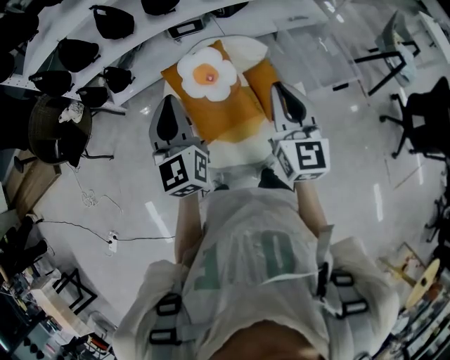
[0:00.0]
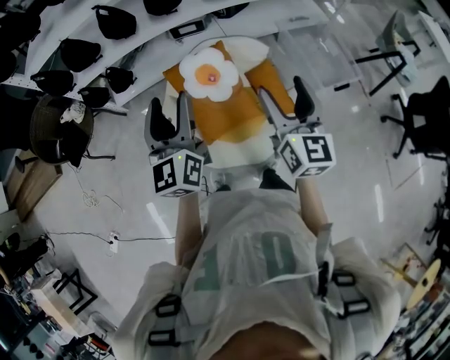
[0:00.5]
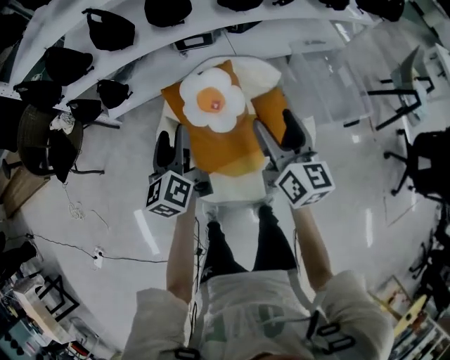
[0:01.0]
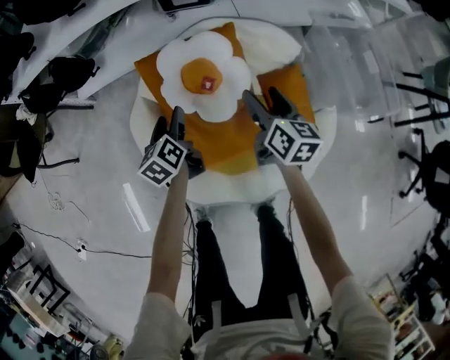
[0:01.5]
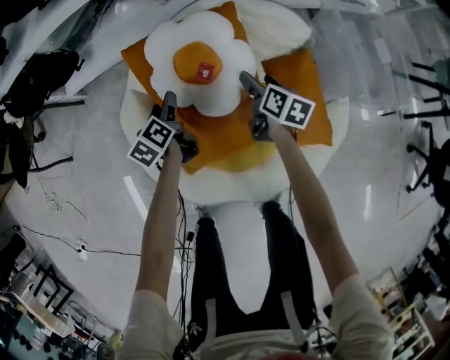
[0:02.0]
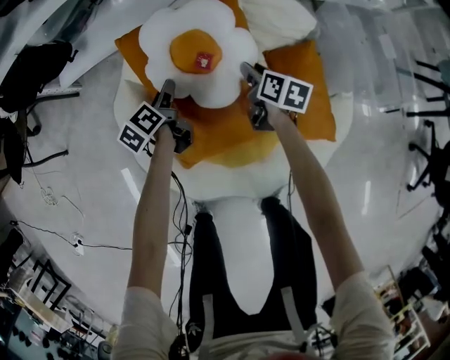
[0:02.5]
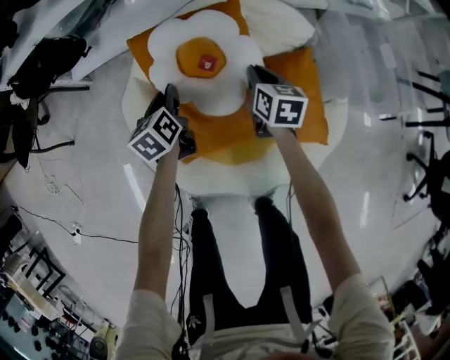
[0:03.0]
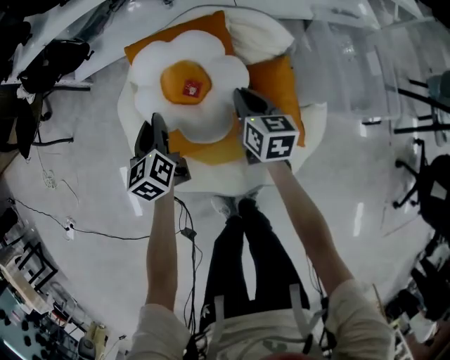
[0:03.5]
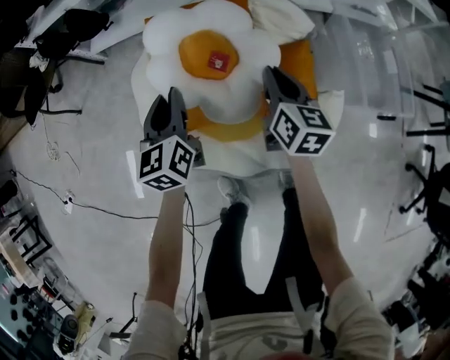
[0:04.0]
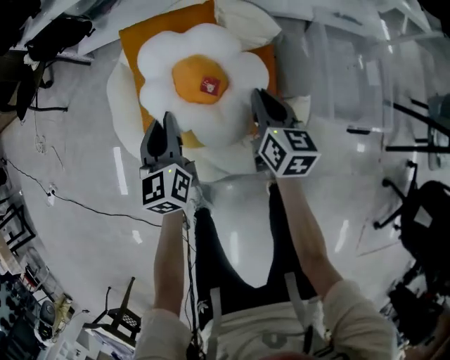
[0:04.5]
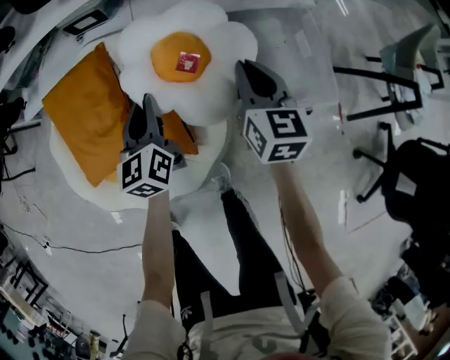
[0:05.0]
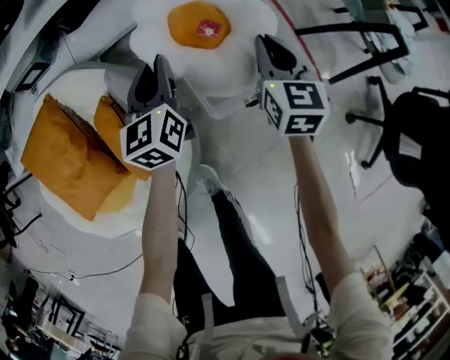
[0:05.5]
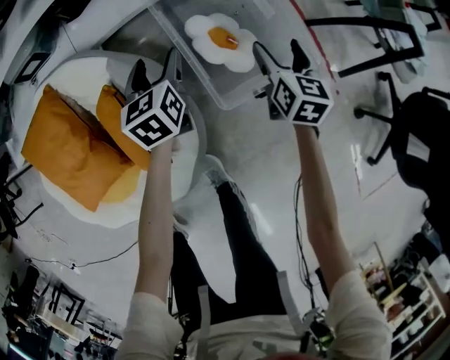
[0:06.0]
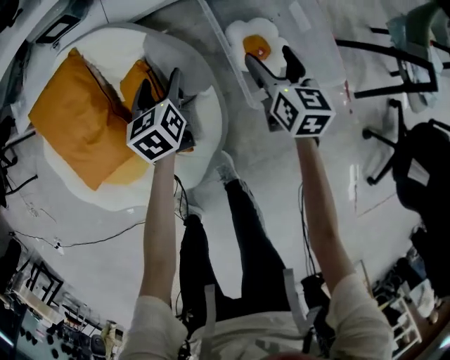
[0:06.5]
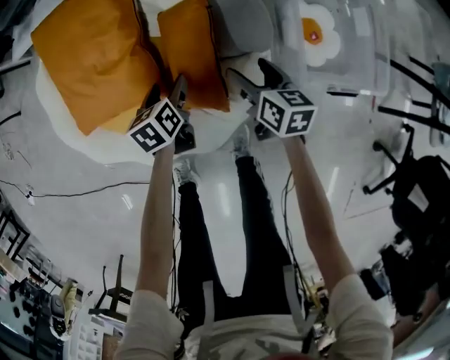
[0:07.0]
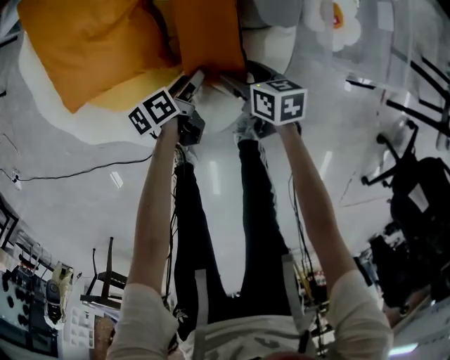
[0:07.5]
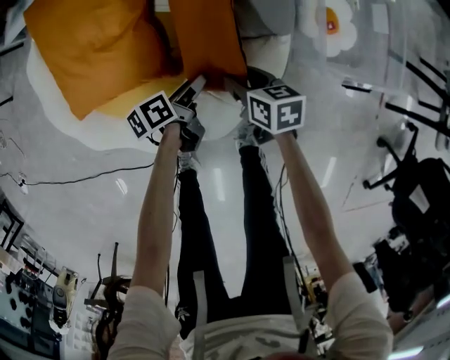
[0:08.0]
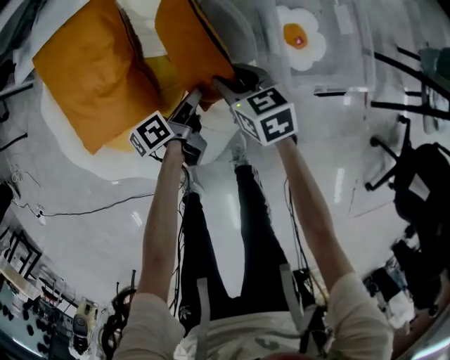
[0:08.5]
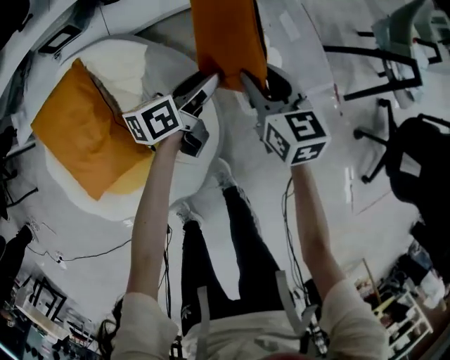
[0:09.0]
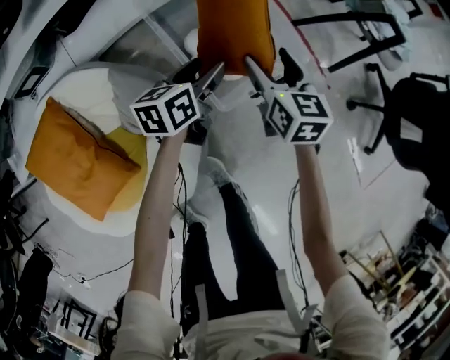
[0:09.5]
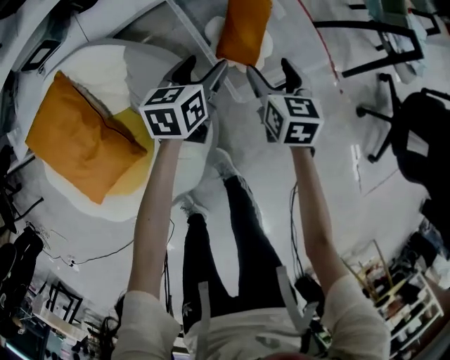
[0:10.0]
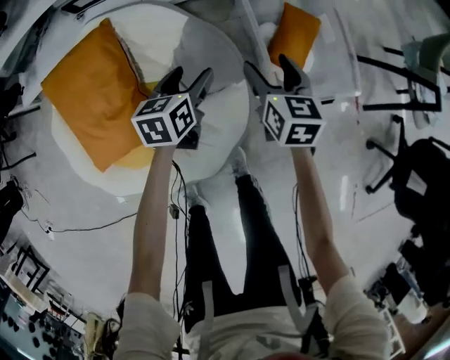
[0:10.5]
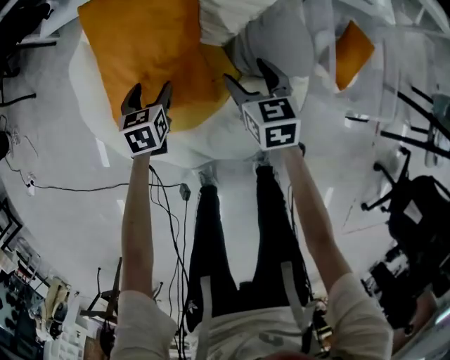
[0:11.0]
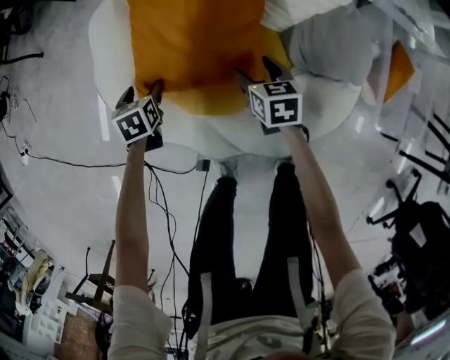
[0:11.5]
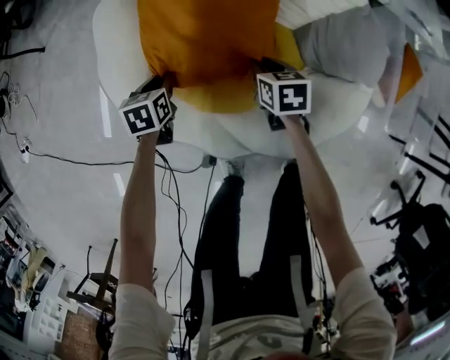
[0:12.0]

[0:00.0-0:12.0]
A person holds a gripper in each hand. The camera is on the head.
0:00.0 to 0:02.0: The left gripper shifts about 60 cm downward, points its fingers roughly 30 degrees further downward, and opens its fingers, while the right gripper moves downward and forward, roughly 70 cm, points its fingers approximately 30 degrees further downward, and opens its fingers.
0:02.0 to 0:04.0: The grippers both shift upward and backward by some 25 cm. The right gripper rotates roughly 30 degrees, and closes its fingers; the left gripper changes its angle by approximately 30 degrees, and closes its fingers.
0:04.0 to 0:06.0: The pair of grippers is taken approximately 70 cm. The right gripper swivels about 30 degrees, and opens up. Meanwhile the left gripper rotates roughly 20 degrees, and opens up.
0:06.0 to 0:08.0: The left gripper ends up roughly 40 cm from where it was, and twists roughly 60 degrees counterclockwise, seen from behind. Meanwhile the right gripper changes place by some 50 cm, swivels about 50 degrees, and closes up.
0:08.0 to 0:10.0: The right gripper ends up some 40 cm from where it was, and rotates roughly 50 degrees, while the left gripper moves approximately 40 cm, and rotates around the line of its fingers by approximately 60 degrees, clockwise from behind.
0:10.0 to 0:12.0: Both grippers are carried some 60 cm. The right gripper swivels approximately 50 degrees, and closes up. Meanwhile the left gripper turns by approximately 50 degrees, and closes its fingers.

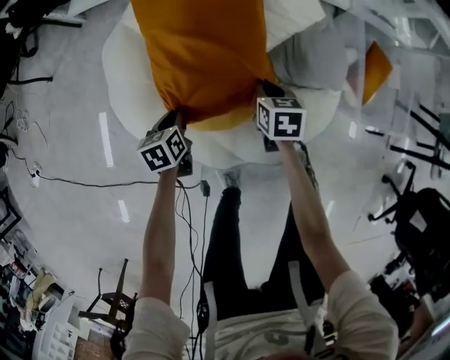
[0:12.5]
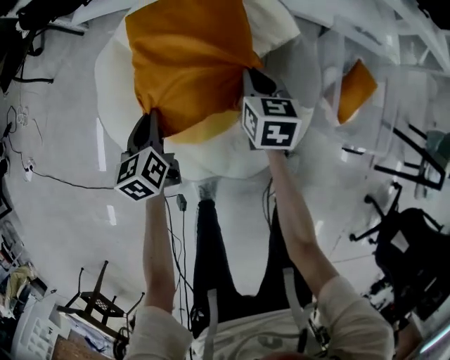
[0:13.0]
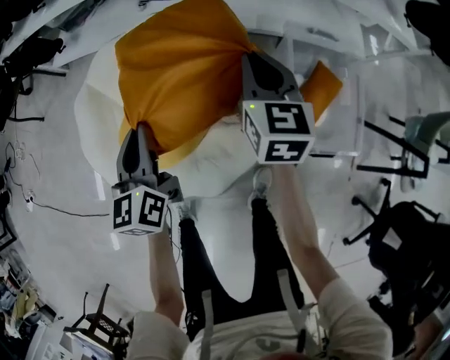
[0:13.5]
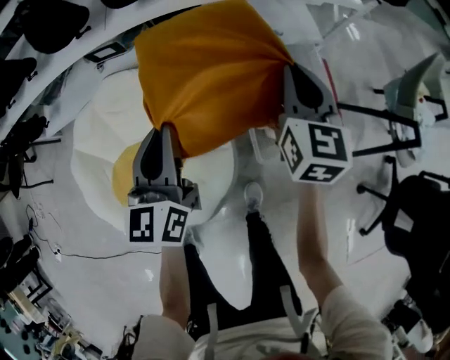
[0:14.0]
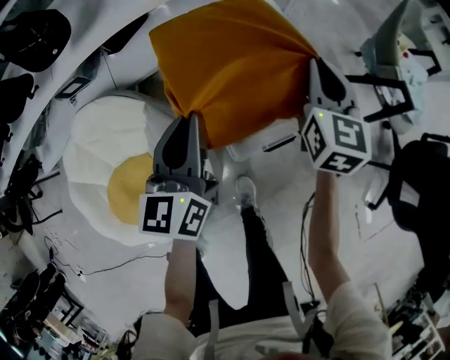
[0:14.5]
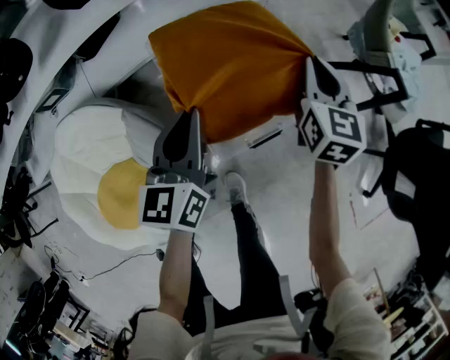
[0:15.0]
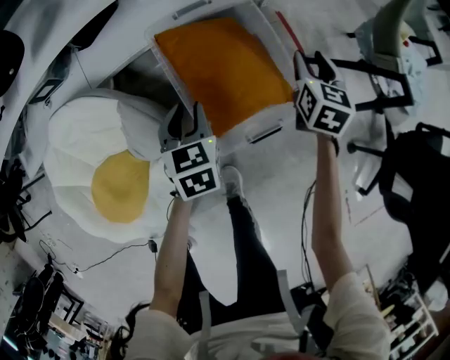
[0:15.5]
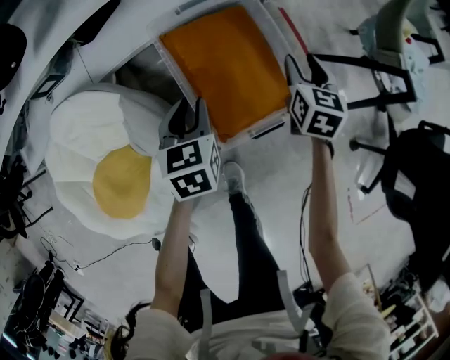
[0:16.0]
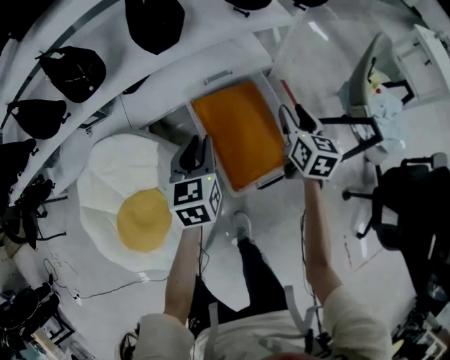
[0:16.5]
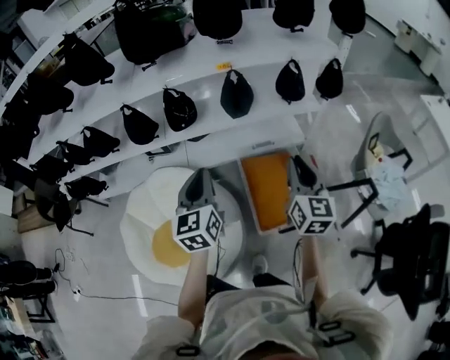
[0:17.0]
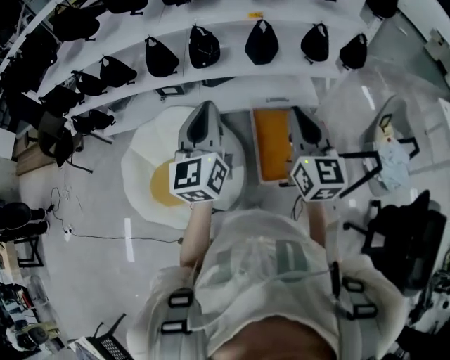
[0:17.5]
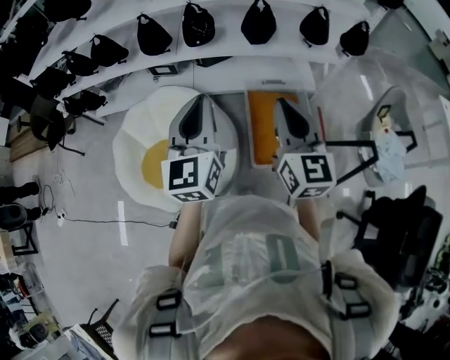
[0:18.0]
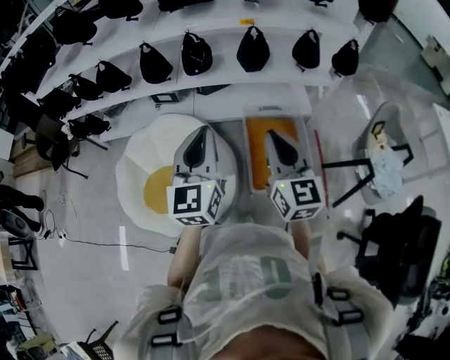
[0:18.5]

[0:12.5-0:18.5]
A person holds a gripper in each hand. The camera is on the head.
0:12.5 to 0:14.5: The pair of grippers is taken approximately 70 cm. The left gripper tips its fingers upward by roughly 40 degrees, while the right gripper tilts its fingers approximately 40 degrees upward.
0:14.5 to 0:16.5: The left gripper reaches some 20 cm downward, then returns, and swivels roughly 20 degrees, while the right gripper reaches approximately 15 cm downward, then returns, and opens up.
0:16.5 to 0:18.5: The left gripper heads upward, backward and to the left, covering approximately 40 cm, and points its fingers some 30 degrees further upward; the right gripper heads upward, to the left and backward, covering approximately 40 cm, swivels some 40 degrees, and closes.

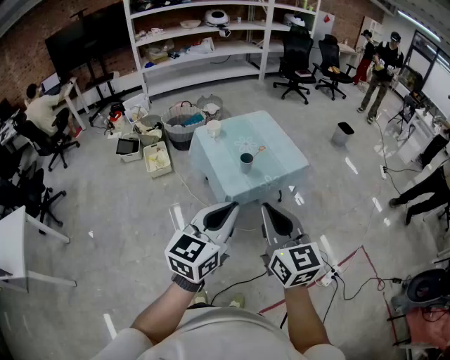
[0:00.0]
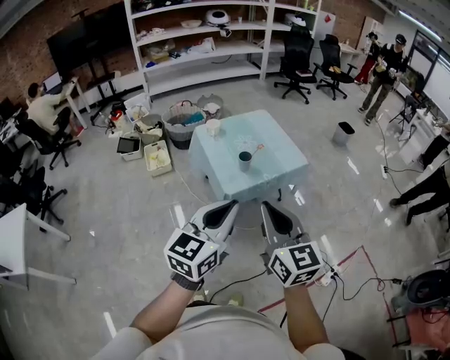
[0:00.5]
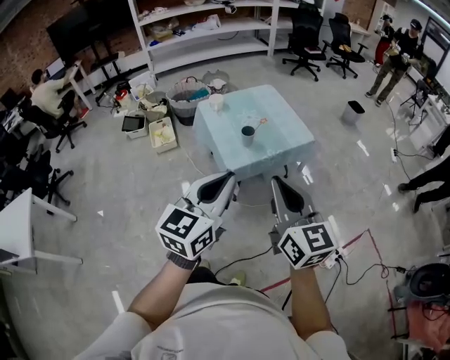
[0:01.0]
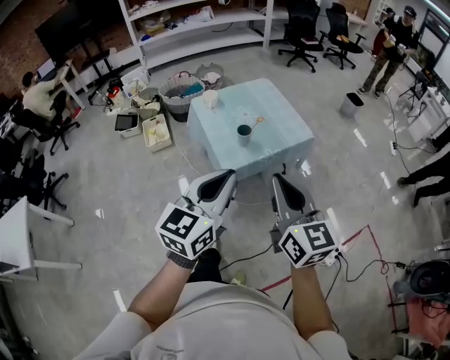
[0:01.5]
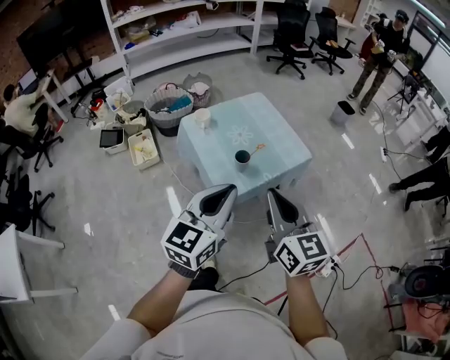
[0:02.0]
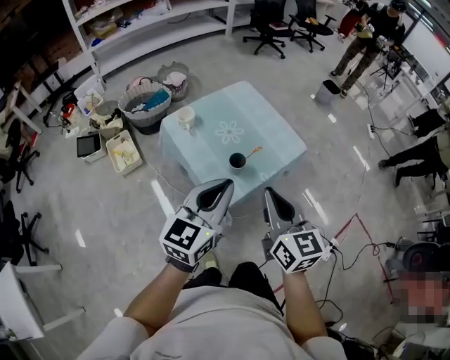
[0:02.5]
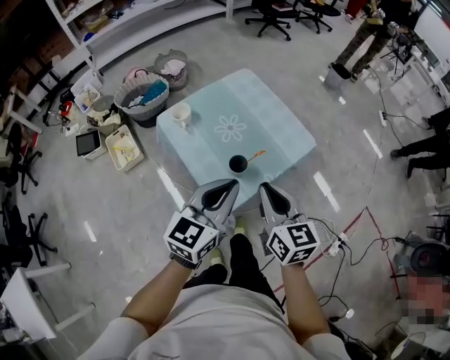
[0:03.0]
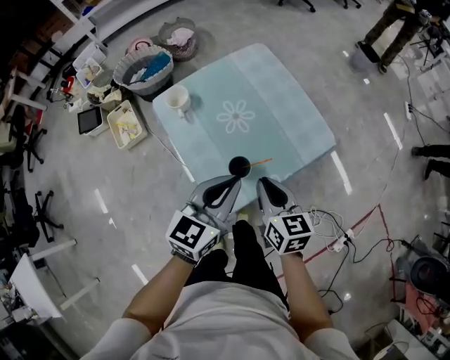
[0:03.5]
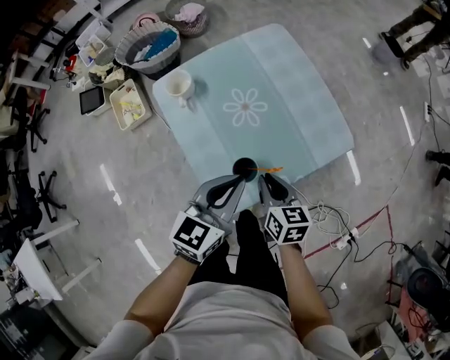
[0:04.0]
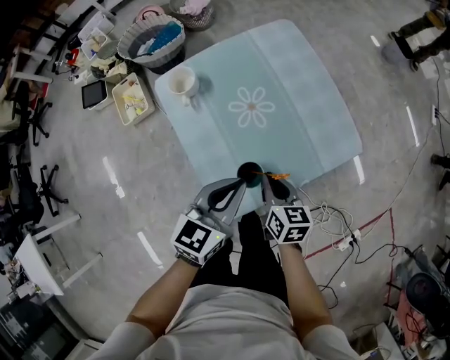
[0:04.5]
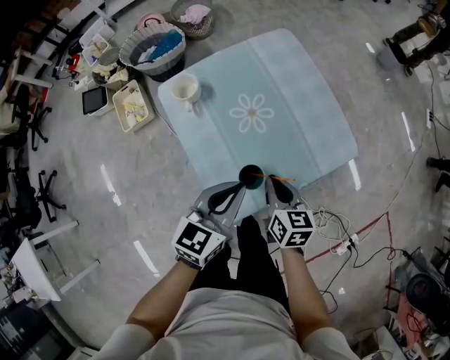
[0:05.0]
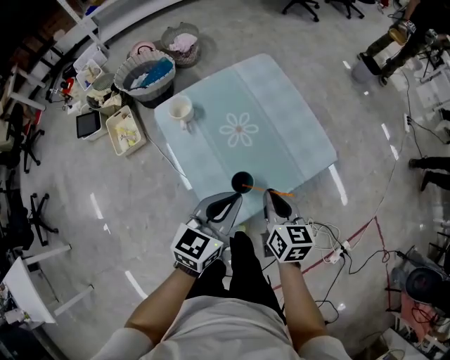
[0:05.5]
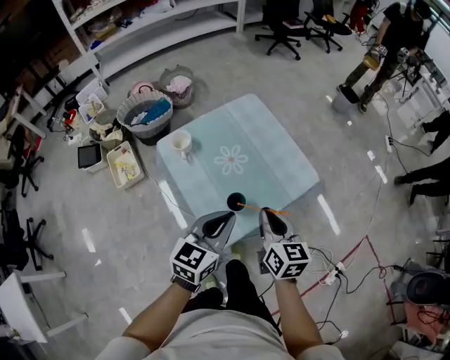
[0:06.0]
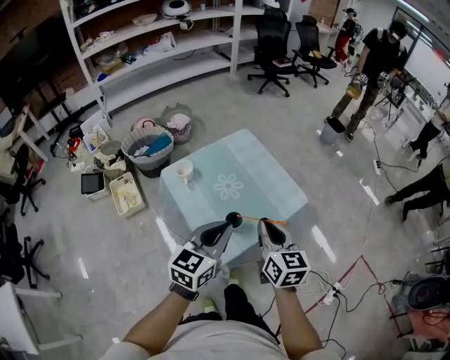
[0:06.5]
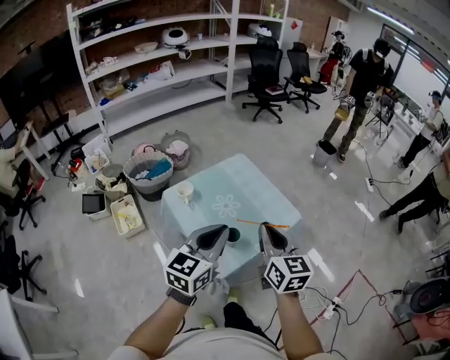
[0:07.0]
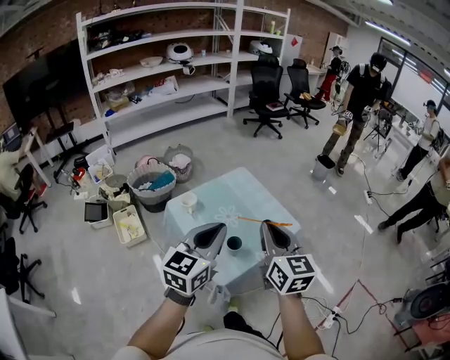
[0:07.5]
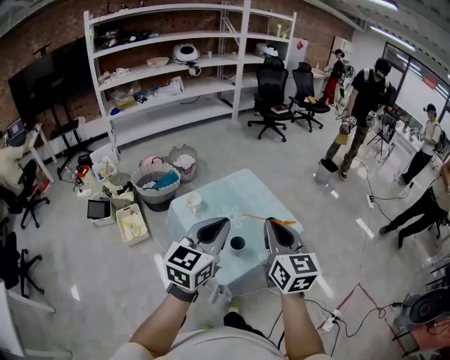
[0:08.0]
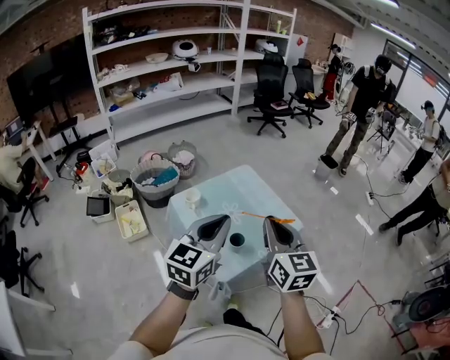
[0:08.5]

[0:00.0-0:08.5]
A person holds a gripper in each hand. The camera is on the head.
0:00.0 to 0:02.0: The grippers both shift forward by about 20 cm.
0:02.0 to 0:04.0: The right gripper is displaced downward and forward by approximately 50 cm, and angles its fingers downward, by about 30 degrees; the left gripper is displaced forward and downward by some 40 cm.
0:04.0 to 0:06.5: The left gripper moves upward and backward, about 15 cm. Meanwhile the right gripper shifts some 25 cm upward, and swivels approximately 30 degrees.
0:06.5 to 0:08.5: Both grippers travel together upward, about 15 cm.
